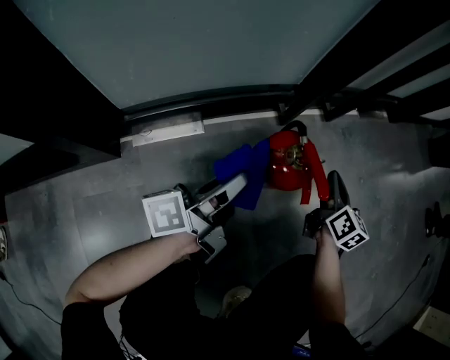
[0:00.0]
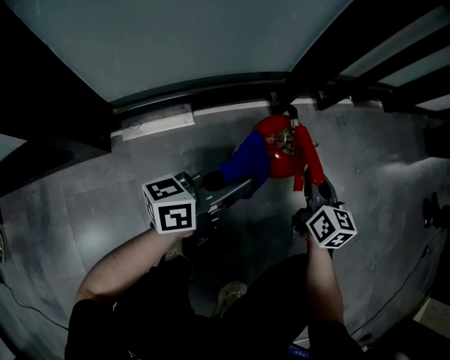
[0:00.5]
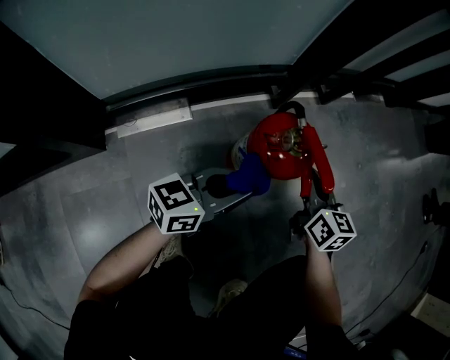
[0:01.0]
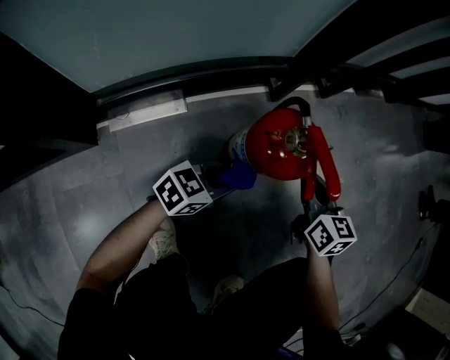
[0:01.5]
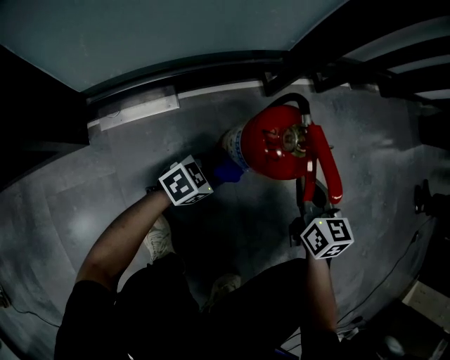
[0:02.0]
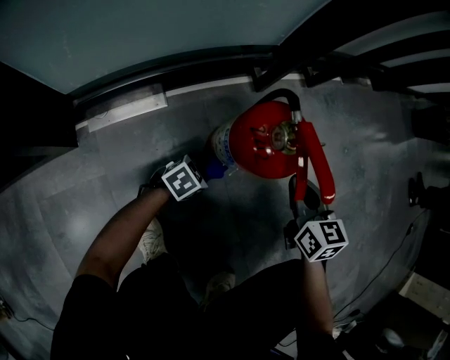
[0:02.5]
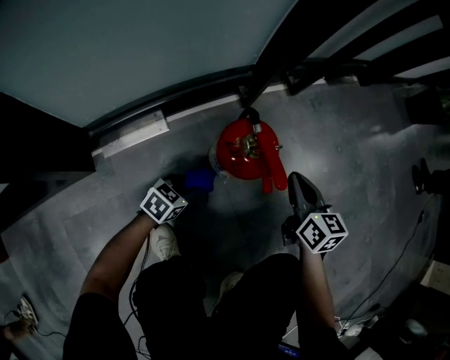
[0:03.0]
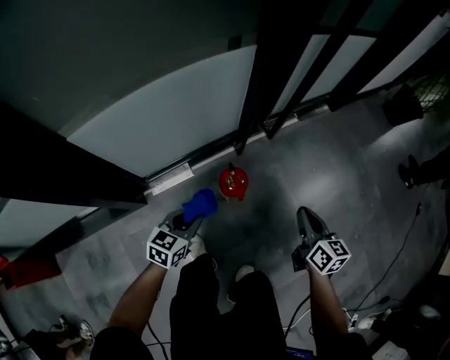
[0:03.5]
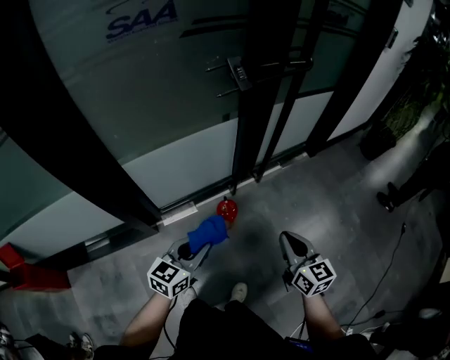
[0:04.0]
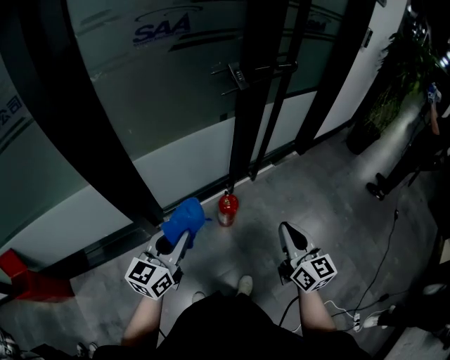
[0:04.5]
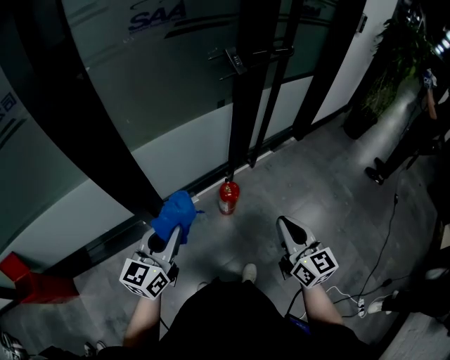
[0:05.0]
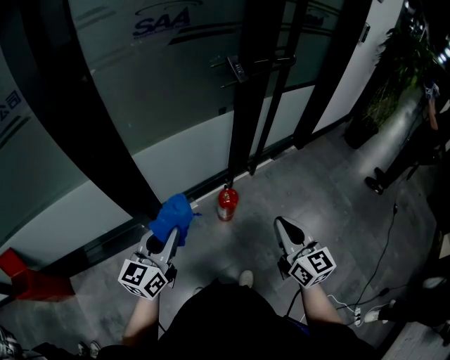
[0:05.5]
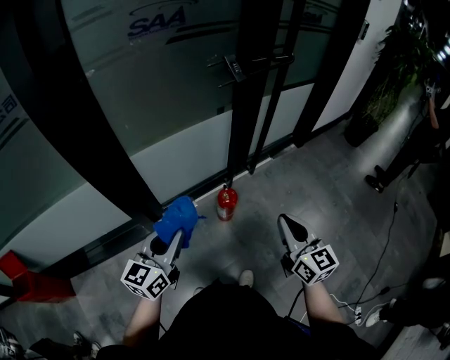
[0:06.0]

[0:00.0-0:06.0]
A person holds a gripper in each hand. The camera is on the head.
0:00.0 to 0:02.0: The left gripper travels downward by roughly 20 cm, and tilts its fingers some 40 degrees downward; the right gripper travels backward and downward by some 10 cm, and swivels about 30 degrees.
0:02.0 to 0:04.0: Both grippers travel together upward, about 80 cm. The left gripper swivels about 40 degrees.
0:04.0 to 0:06.0: The left gripper shifts roughly 20 cm to the left, upward and backward. The right gripper is displaced upward, backward and to the left by some 15 cm.

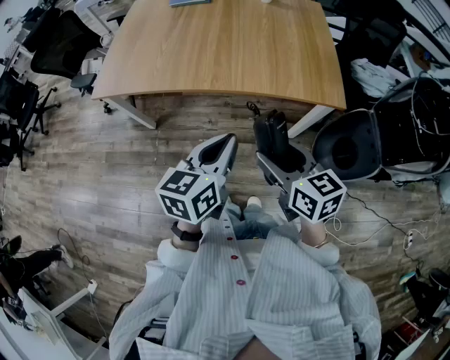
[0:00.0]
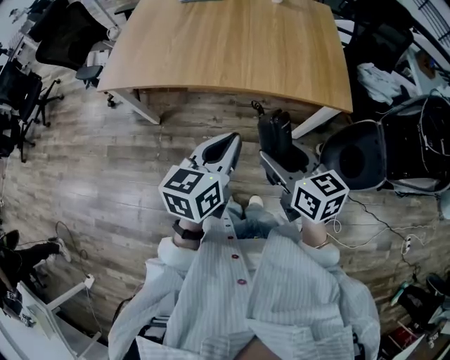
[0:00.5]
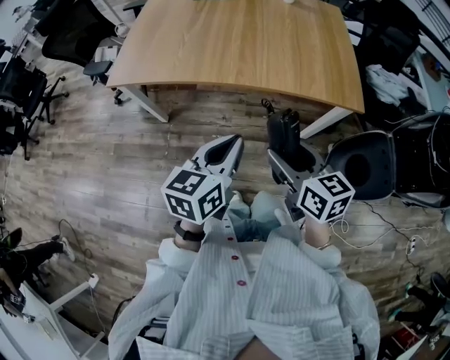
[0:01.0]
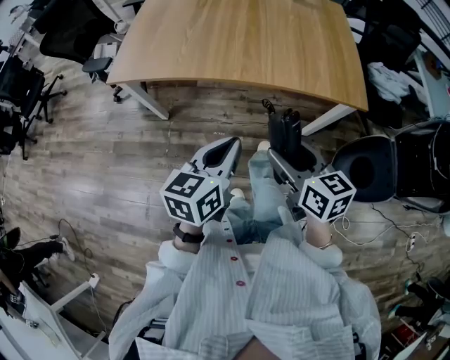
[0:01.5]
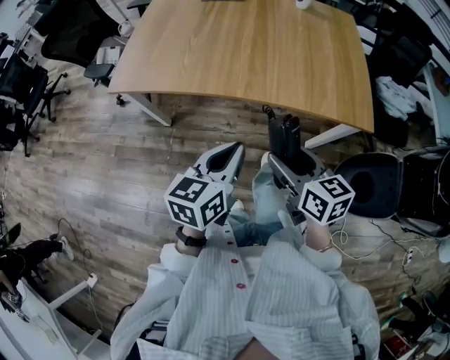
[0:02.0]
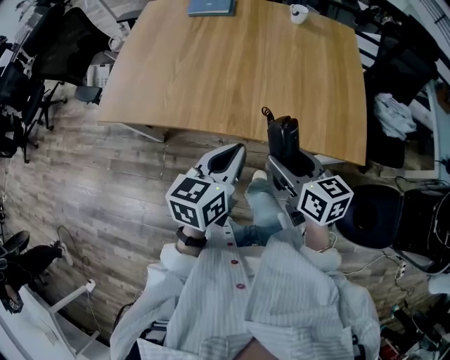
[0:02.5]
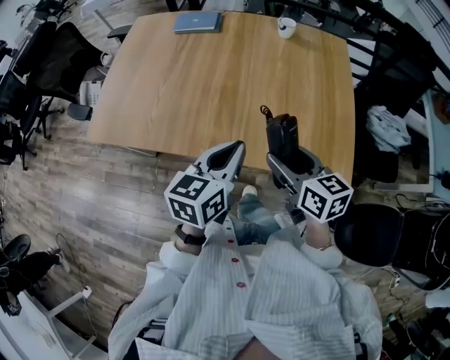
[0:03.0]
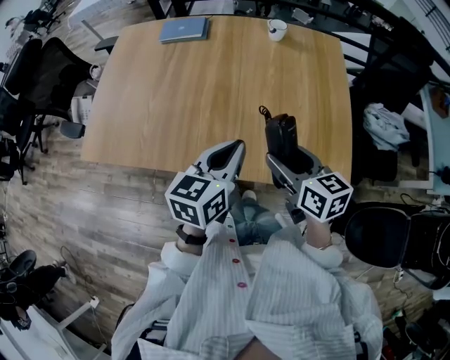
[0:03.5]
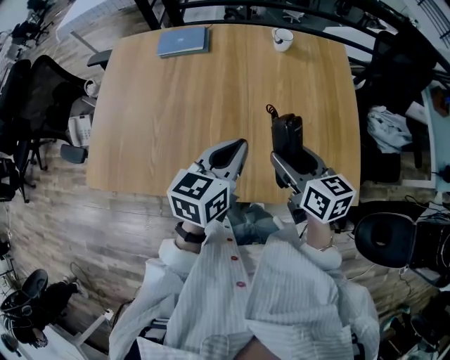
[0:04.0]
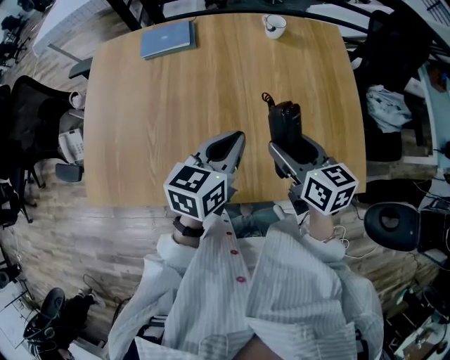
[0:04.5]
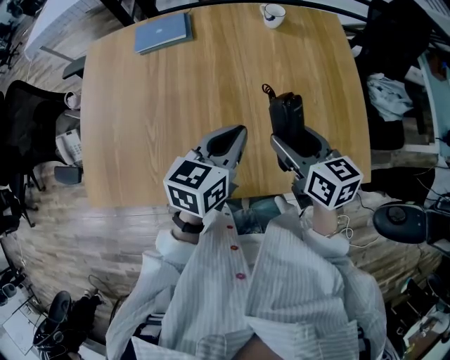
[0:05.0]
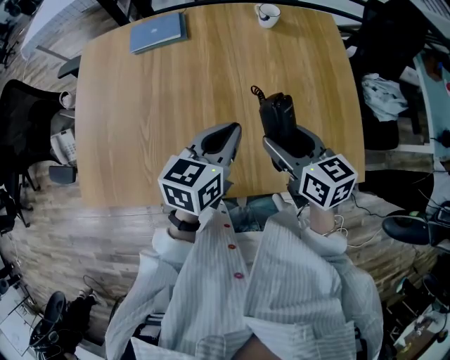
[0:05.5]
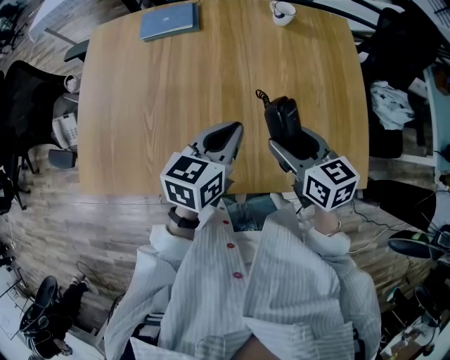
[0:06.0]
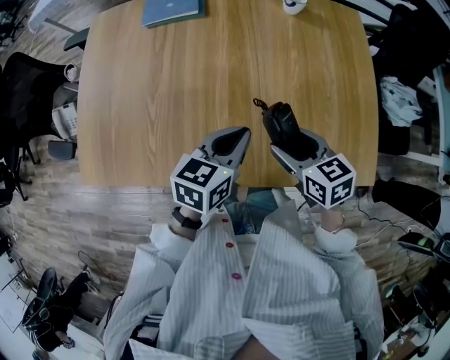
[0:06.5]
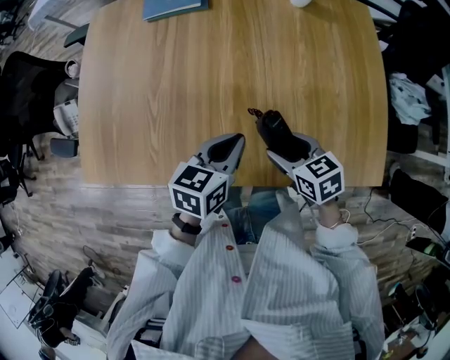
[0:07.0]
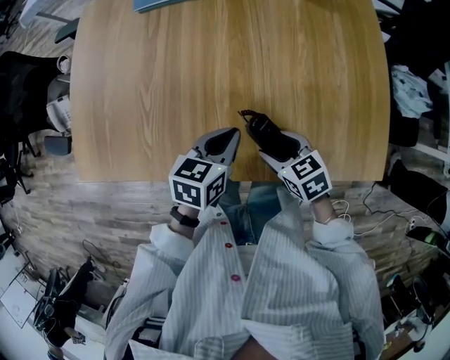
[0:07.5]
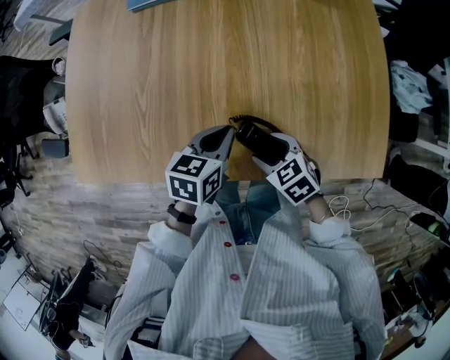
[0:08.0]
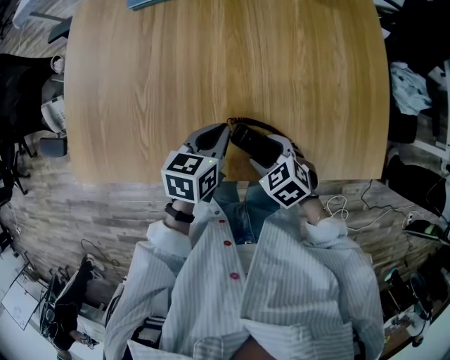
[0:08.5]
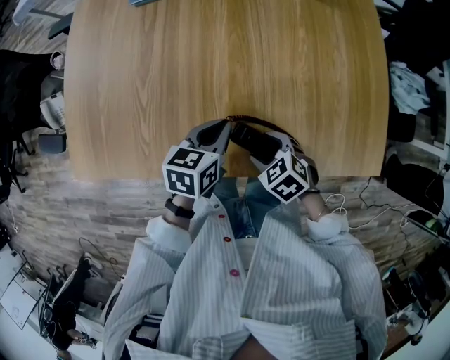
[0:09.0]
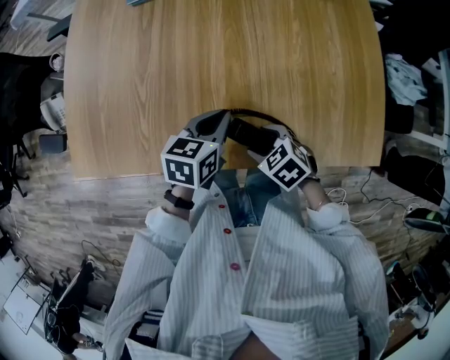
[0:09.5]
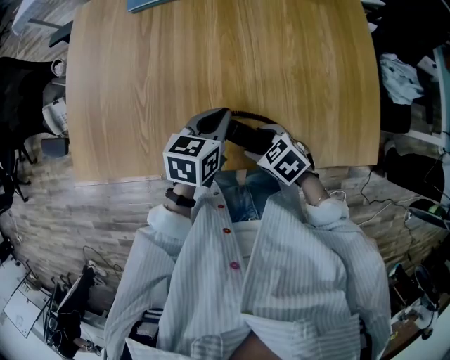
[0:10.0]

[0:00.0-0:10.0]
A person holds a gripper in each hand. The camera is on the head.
0:00.0 to 0:02.0: The left gripper heads to the left, covering about 10 cm, while the right gripper goes approximately 10 cm to the left and forward.
0:02.0 to 0:04.0: Both grippers move forward, about 35 cm.
0:04.0 to 0:06.0: The right gripper changes place by about 5 cm. Meanwhile the left gripper moves downward, approximately 5 cm.
0:06.0 to 0:08.0: Both grippers travel together downward, about 15 cm. The right gripper swivels approximately 40 degrees.
0:08.0 to 0:10.0: There are only small adjustments of the grippers.

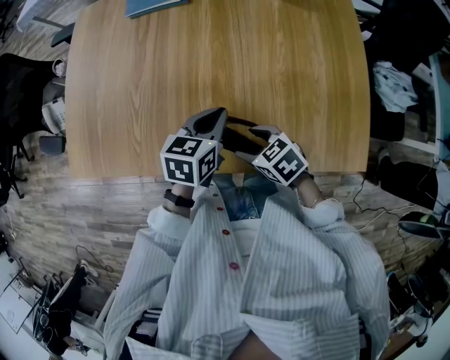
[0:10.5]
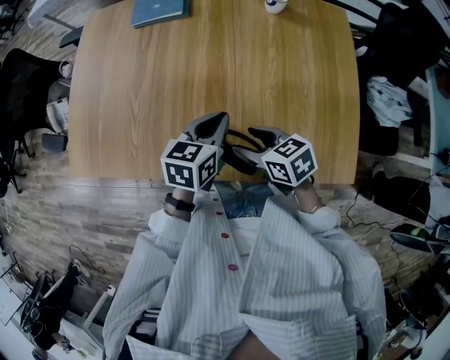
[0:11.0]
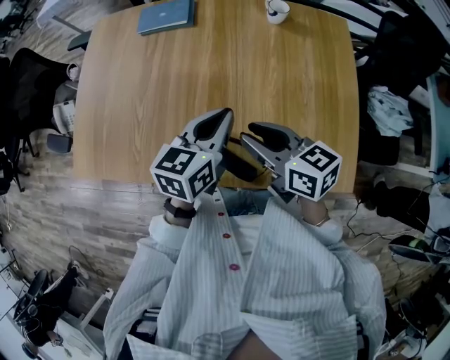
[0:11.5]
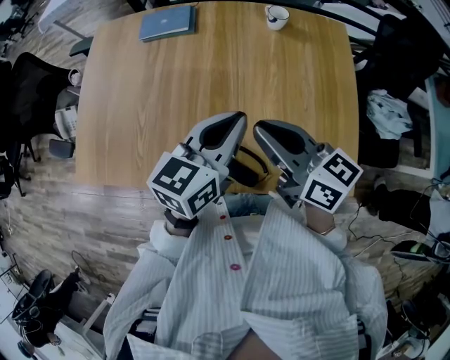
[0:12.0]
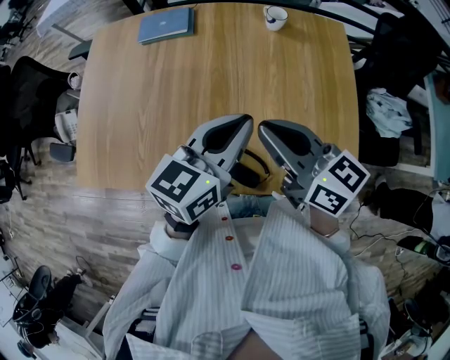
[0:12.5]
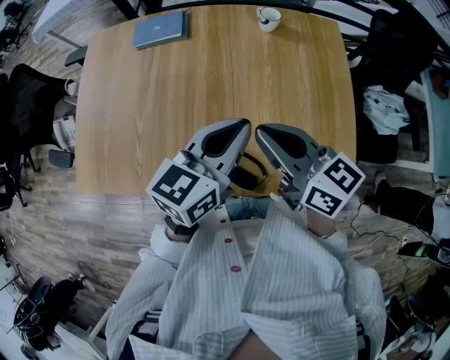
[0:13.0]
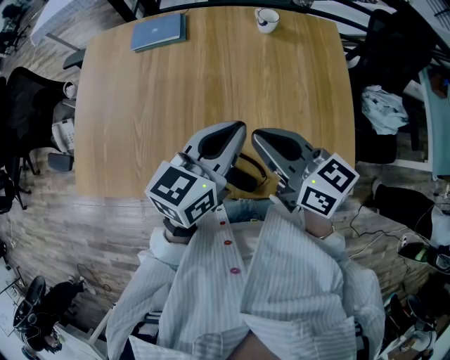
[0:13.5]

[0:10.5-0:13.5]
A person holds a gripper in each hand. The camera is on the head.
0:10.5 to 0:12.0: The grippers both shift upward by some 20 cm. The right gripper points its fingers roughly 40 degrees further upward, and closes. The left gripper swivels some 20 degrees.
0:12.0 to 0:13.5: The grippers move only a little.

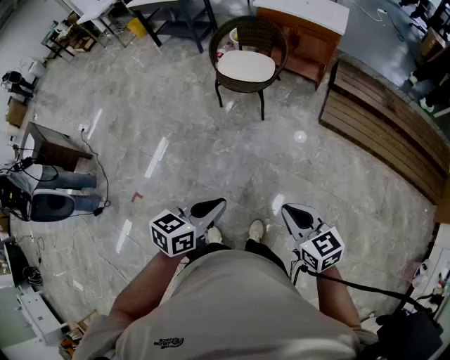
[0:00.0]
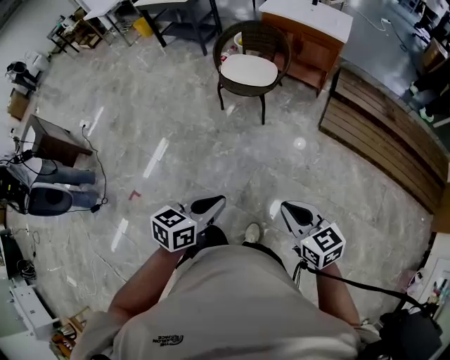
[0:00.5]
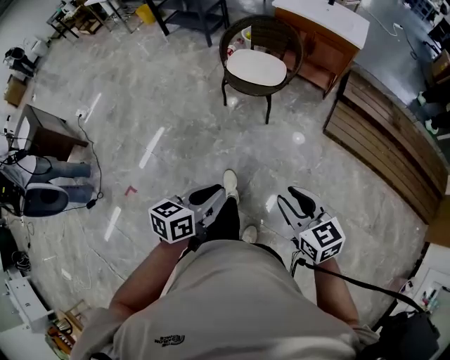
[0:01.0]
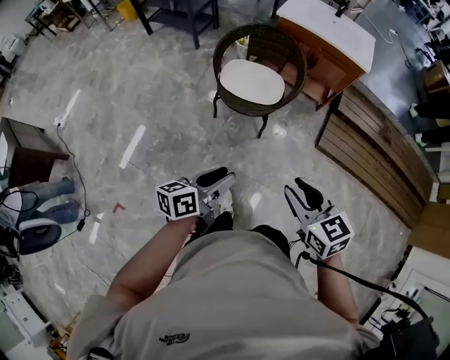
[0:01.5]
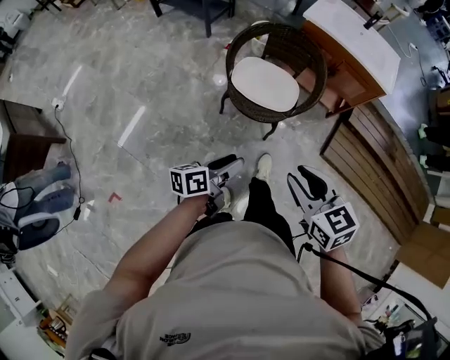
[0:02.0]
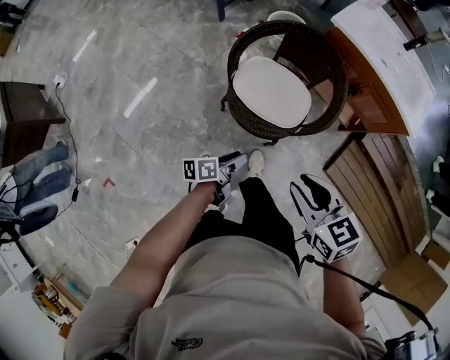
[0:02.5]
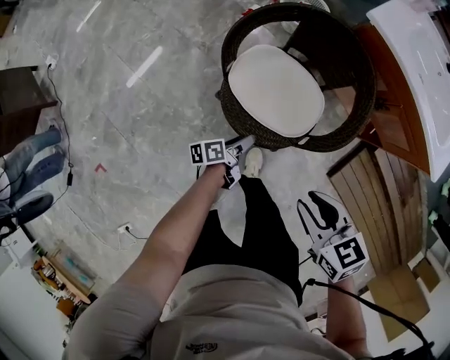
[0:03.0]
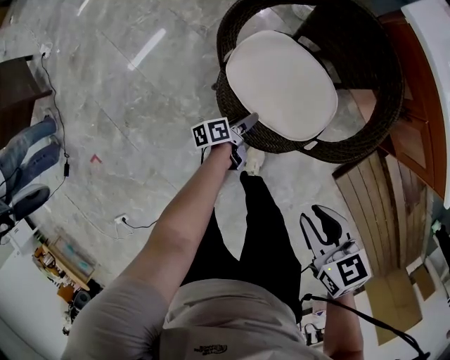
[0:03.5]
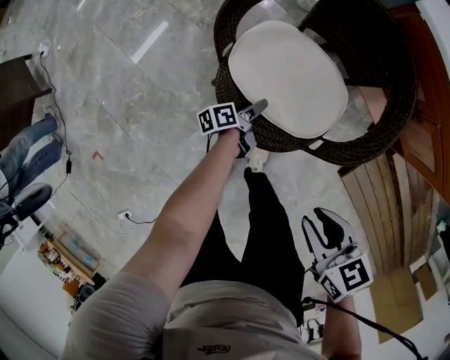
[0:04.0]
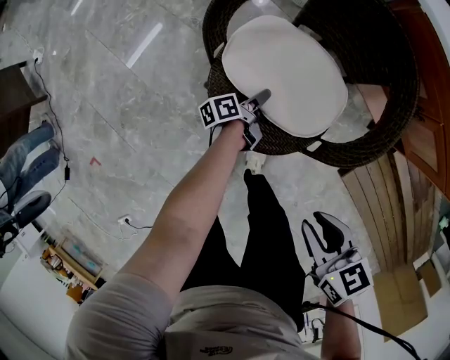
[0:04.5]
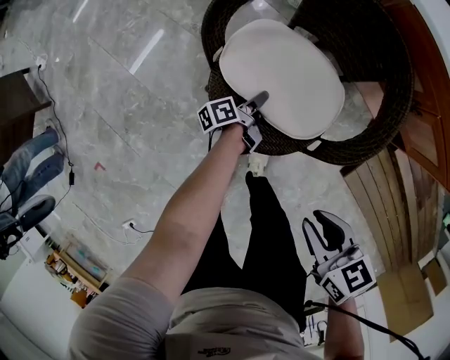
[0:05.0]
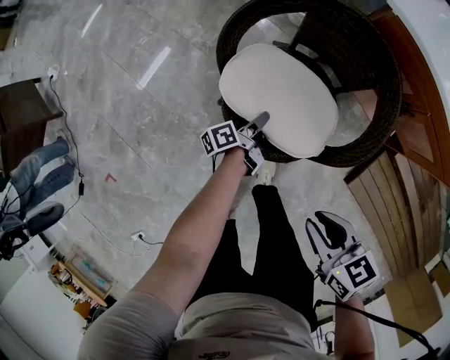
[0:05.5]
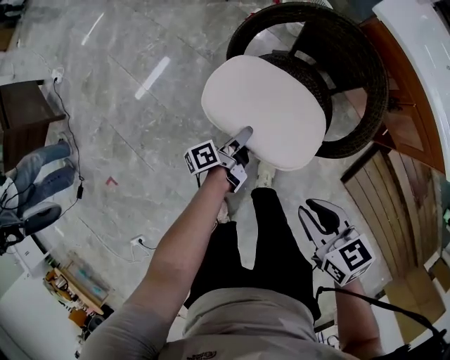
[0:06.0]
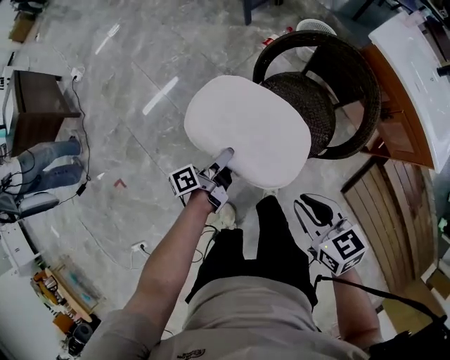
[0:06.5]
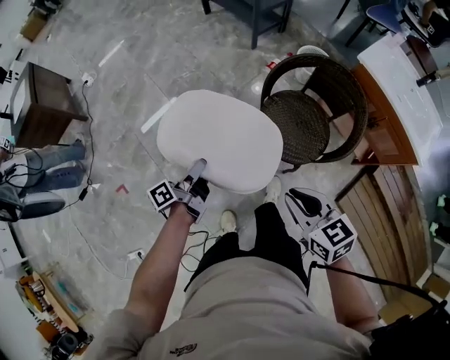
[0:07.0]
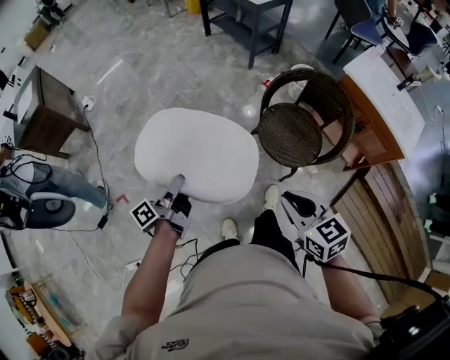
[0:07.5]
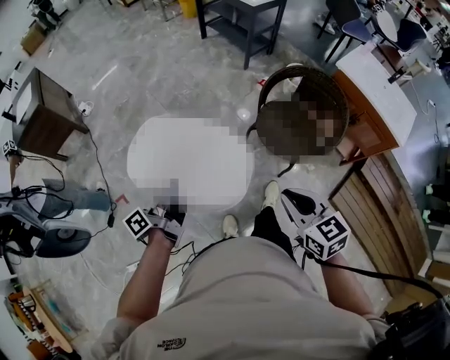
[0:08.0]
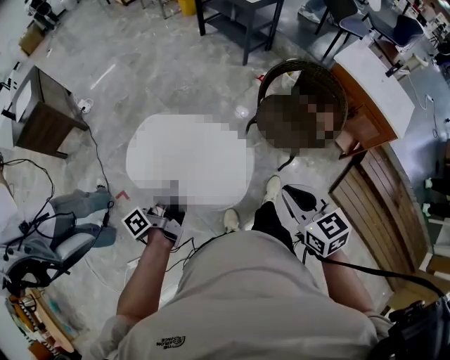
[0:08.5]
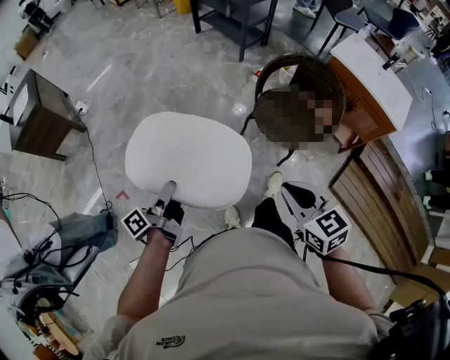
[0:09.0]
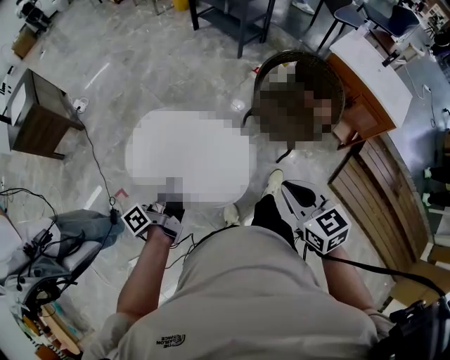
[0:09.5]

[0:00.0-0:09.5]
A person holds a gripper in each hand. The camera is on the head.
0:00.0 to 0:02.0: The right gripper shifts by roughly 50 cm, and opens its fingers.
0:02.0 to 0:04.0: The right gripper ends up some 40 cm from where it was, and changes its angle by some 30 degrees.
0:05.5 to 0:07.5: The right gripper moves roughly 40 cm, and swivels approximately 30 degrees.
0:07.5 to 0:09.5: The right gripper moves approximately 10 cm.
